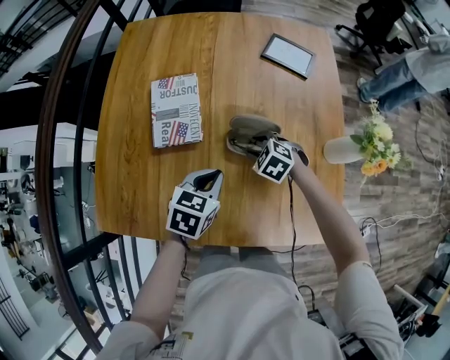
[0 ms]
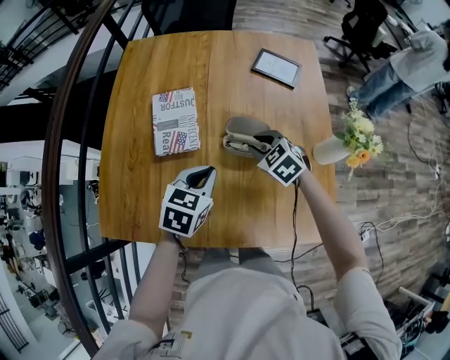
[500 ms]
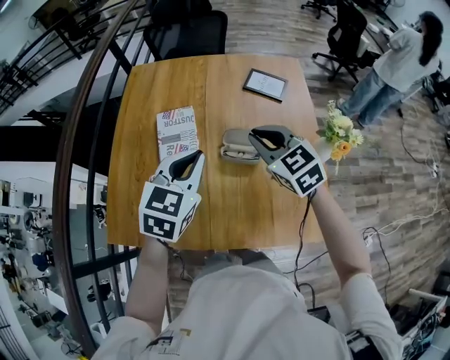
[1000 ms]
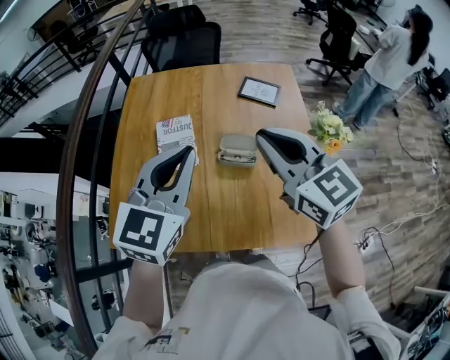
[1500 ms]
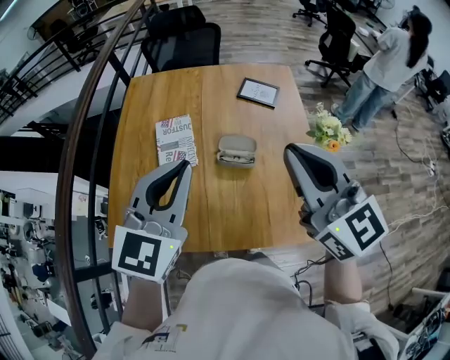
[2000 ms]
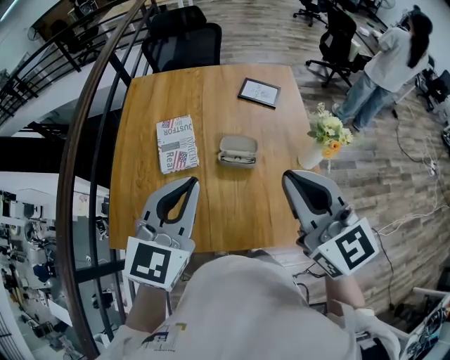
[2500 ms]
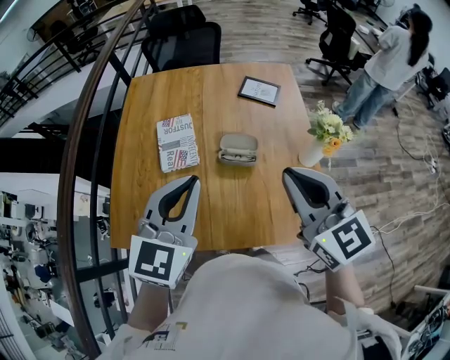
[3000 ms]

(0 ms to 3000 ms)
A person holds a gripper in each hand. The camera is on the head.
0 ms - 1500 ms: The two grippers go roughly 40 cm upward. The left gripper angles its fingers upward, by about 30 degrees. The right gripper points its fingers some 60 degrees further upward, and closes its fingers.
1500 ms - 3000 ms: The two grippers go roughly 5 cm backward.

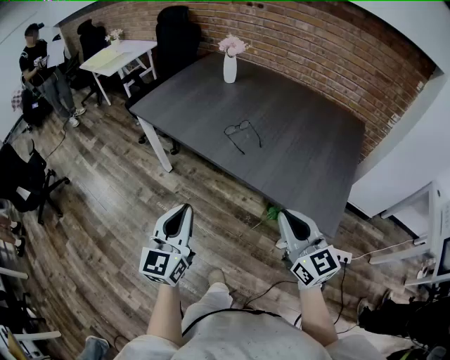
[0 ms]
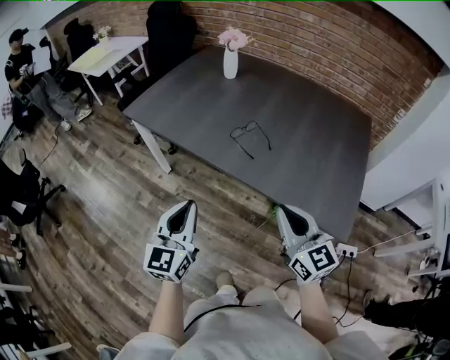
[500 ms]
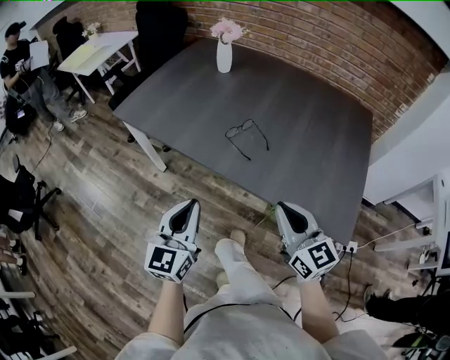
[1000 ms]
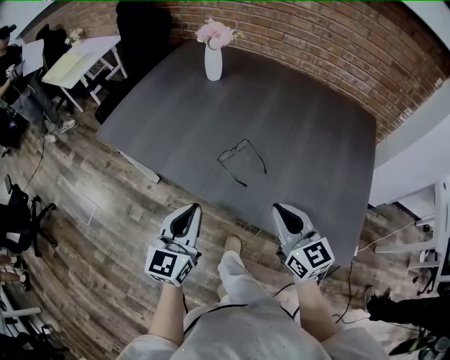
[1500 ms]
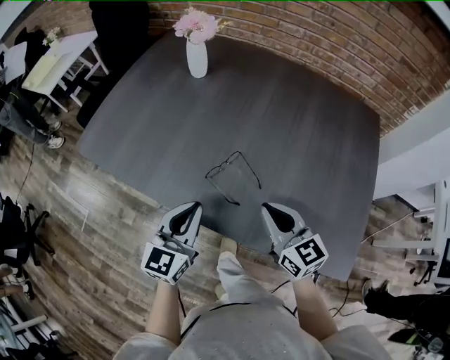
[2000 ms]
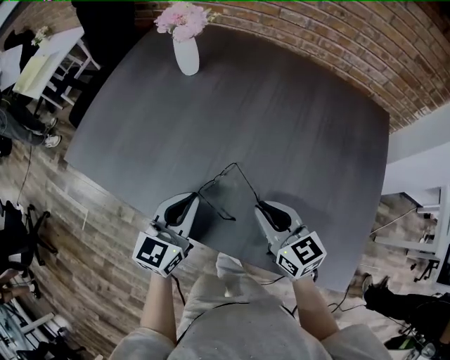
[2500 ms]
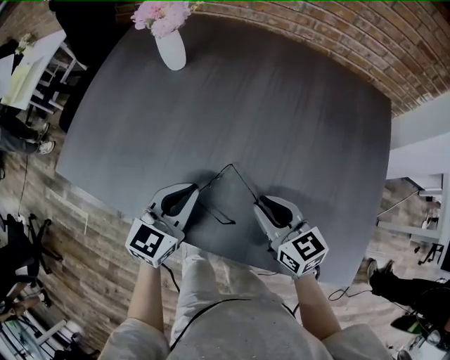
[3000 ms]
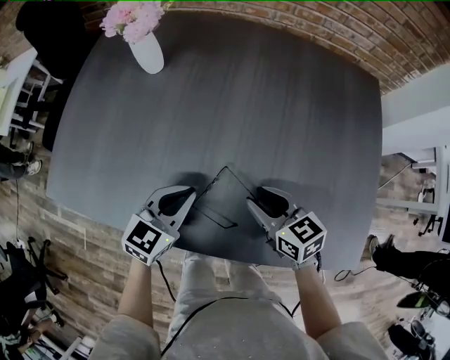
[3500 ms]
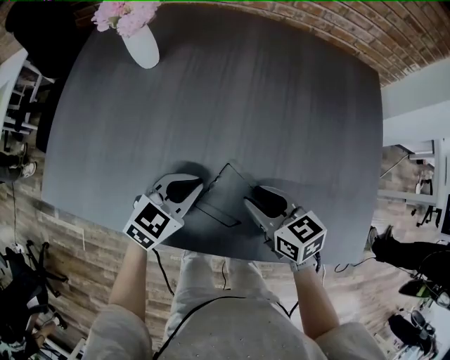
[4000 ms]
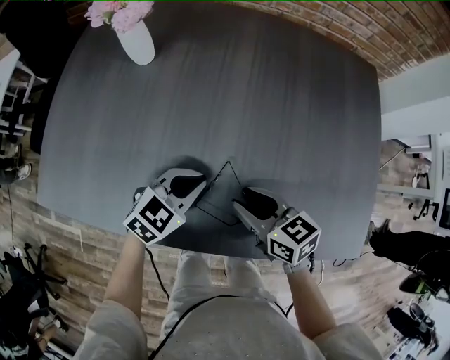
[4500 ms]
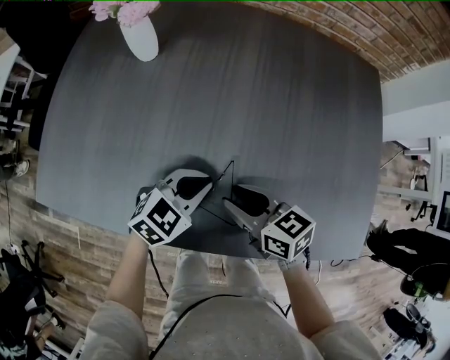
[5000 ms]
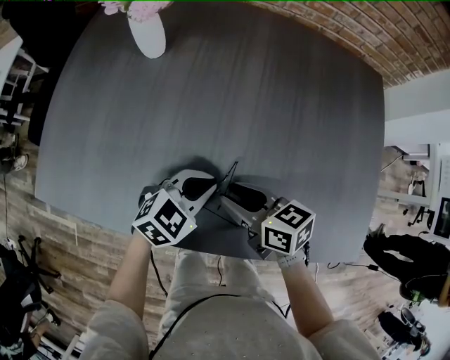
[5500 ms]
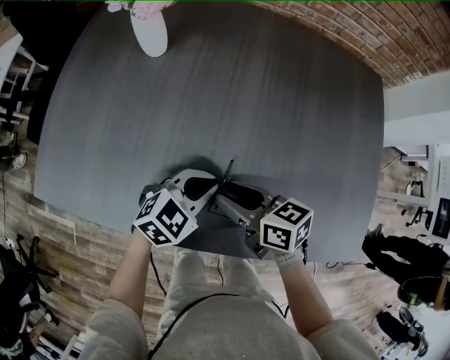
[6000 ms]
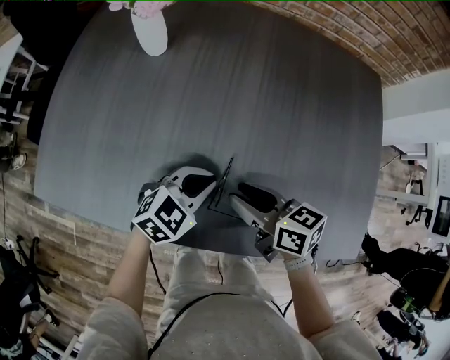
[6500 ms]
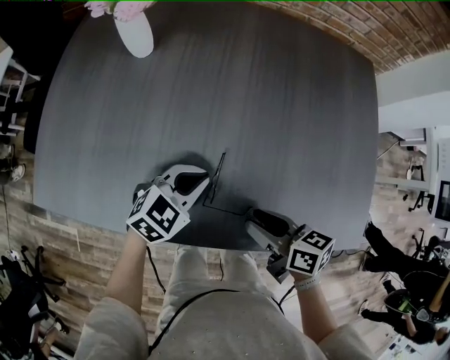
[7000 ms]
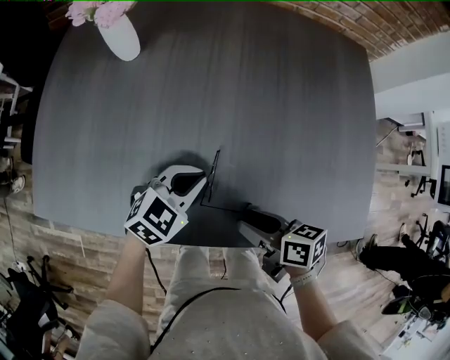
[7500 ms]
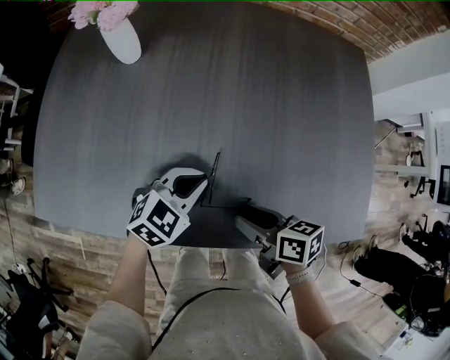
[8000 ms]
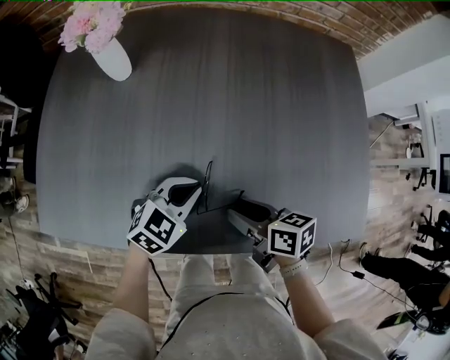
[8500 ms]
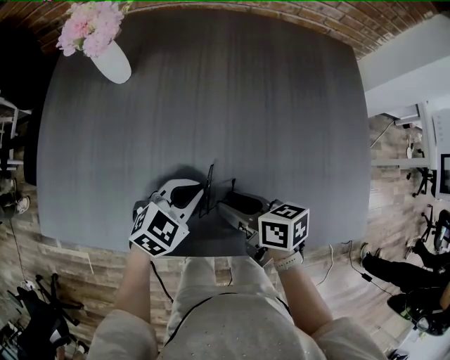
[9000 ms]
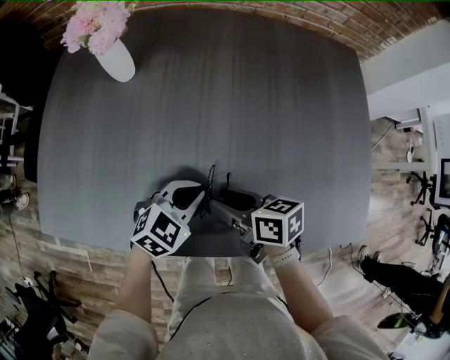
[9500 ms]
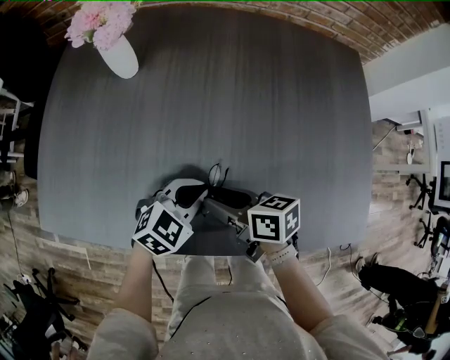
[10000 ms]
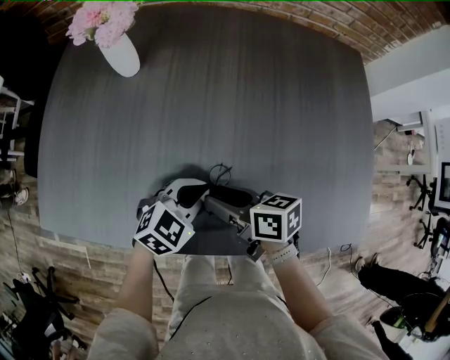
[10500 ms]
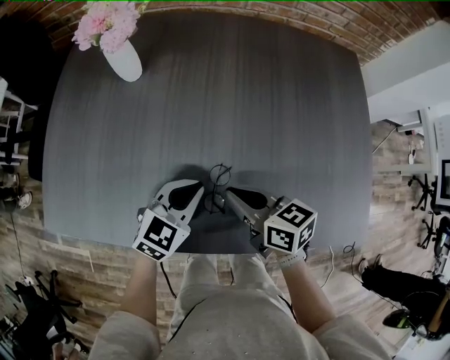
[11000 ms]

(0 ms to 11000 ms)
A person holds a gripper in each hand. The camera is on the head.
0 ms - 2000 ms: Both grippers travel together forward, about 35 cm. The left gripper rotates some 20 degrees.
2000 ms - 3500 ms: Both grippers travel together forward and downward, roughly 15 cm. The left gripper turns by some 30 degrees; the right gripper rotates roughly 20 degrees, and opens its fingers.
3500 ms - 5500 ms: The left gripper shifts by approximately 5 cm, and rotates roughly 30 degrees. The right gripper moves to the left, roughly 10 cm.
5500 ms - 7500 ms: The right gripper heads backward and to the right, covering about 10 cm, and swivels approximately 20 degrees.
7500 ms - 9000 ms: The right gripper heads forward, covering about 5 cm.
9000 ms - 11000 ms: The right gripper closes its fingers.

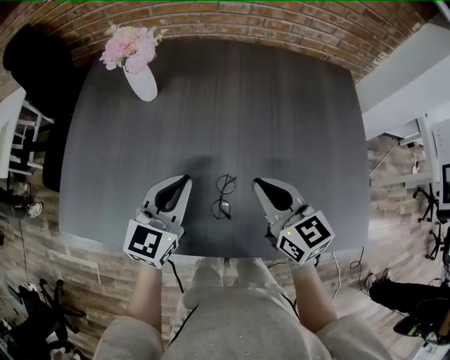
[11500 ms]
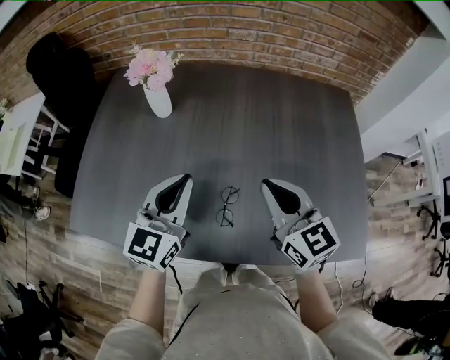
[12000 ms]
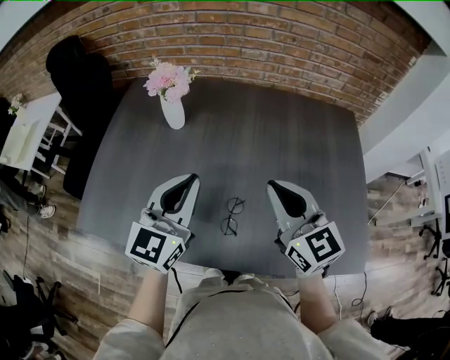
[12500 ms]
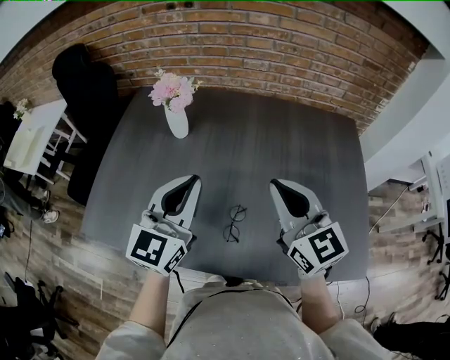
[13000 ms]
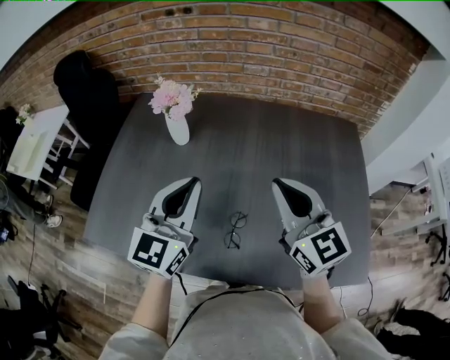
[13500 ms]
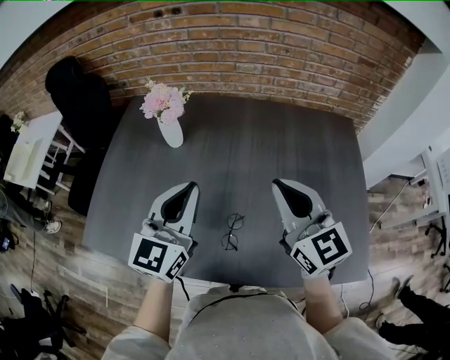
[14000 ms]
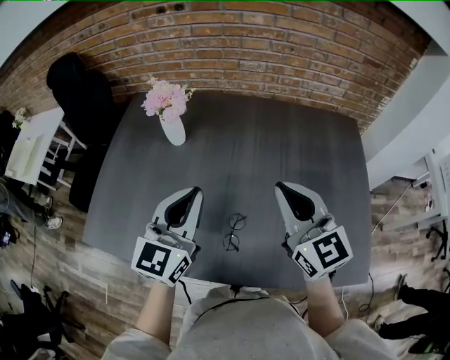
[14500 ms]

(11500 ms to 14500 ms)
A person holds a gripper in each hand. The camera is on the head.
11500 ms - 13000 ms: Both grippers move upward, about 15 cm. The right gripper rotates about 20 degrees.
13000 ms - 14500 ms: The grippers move only a little.

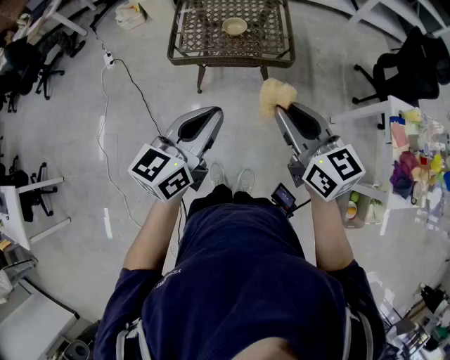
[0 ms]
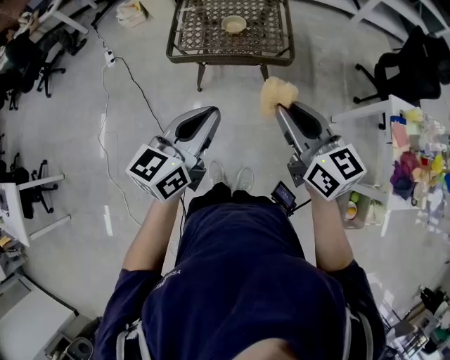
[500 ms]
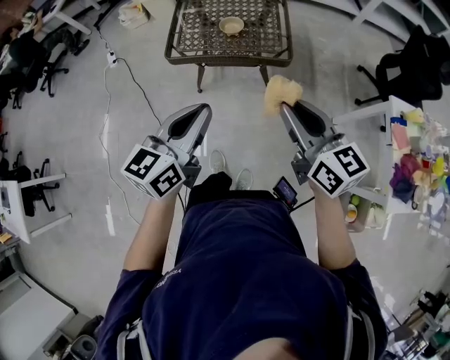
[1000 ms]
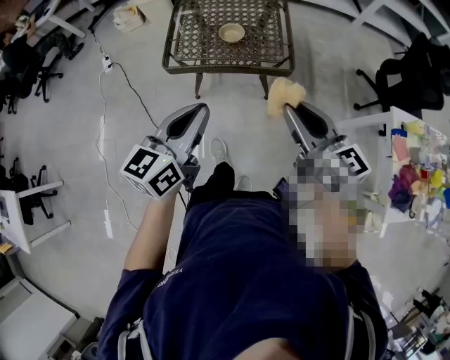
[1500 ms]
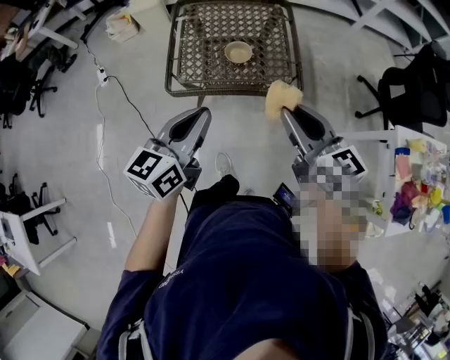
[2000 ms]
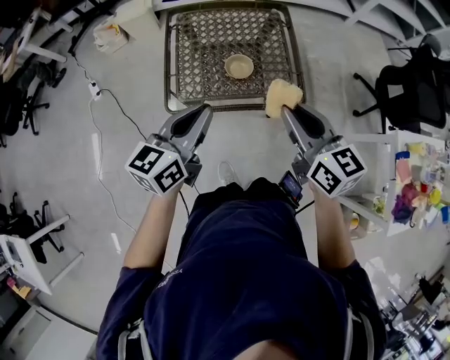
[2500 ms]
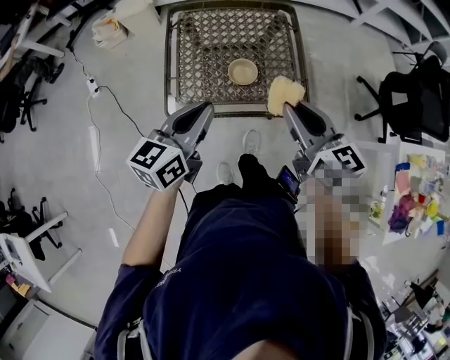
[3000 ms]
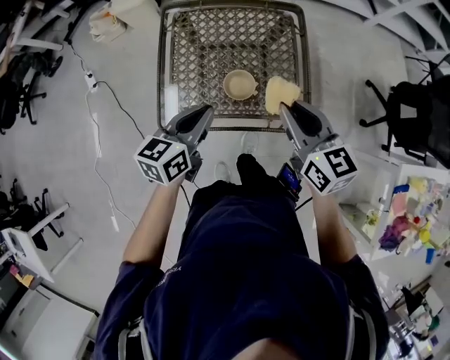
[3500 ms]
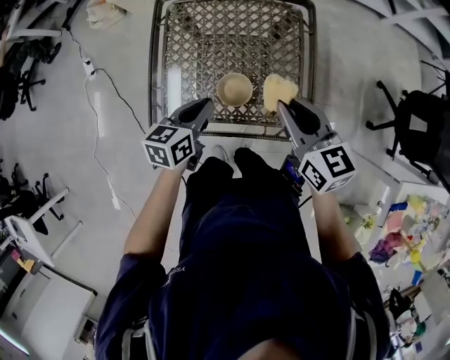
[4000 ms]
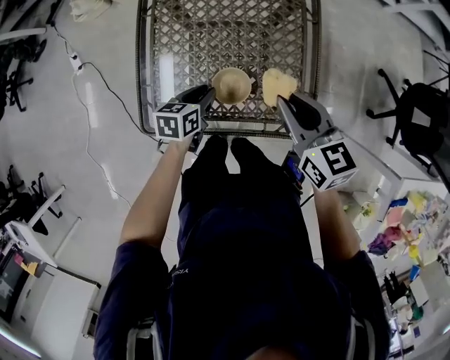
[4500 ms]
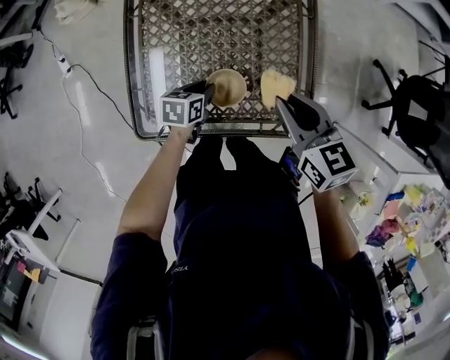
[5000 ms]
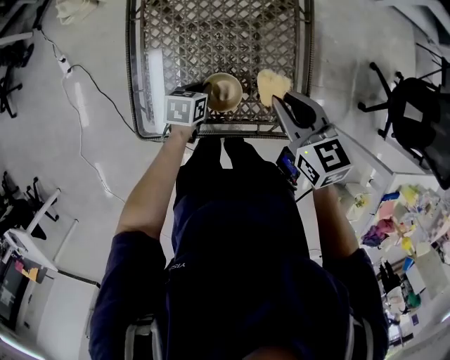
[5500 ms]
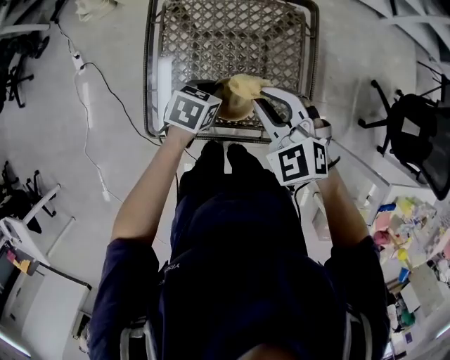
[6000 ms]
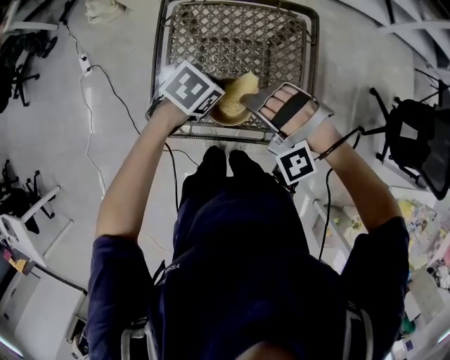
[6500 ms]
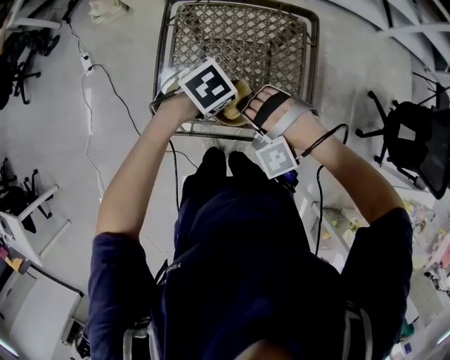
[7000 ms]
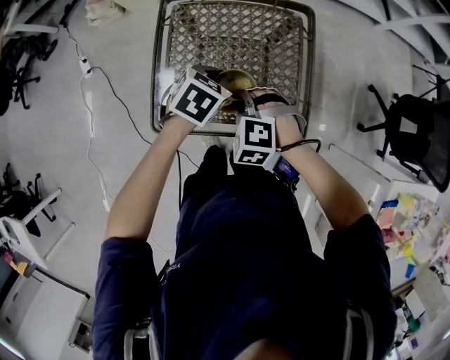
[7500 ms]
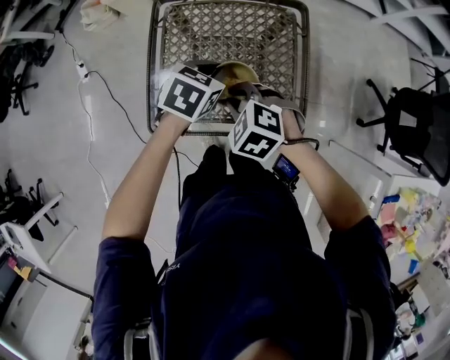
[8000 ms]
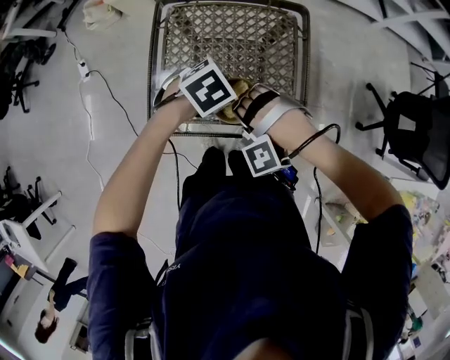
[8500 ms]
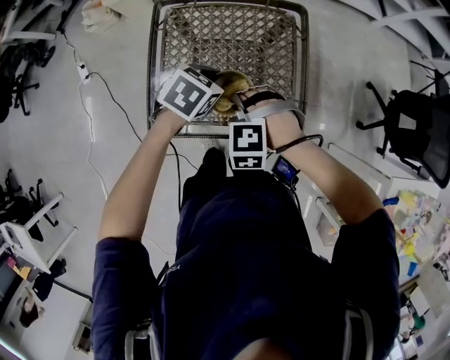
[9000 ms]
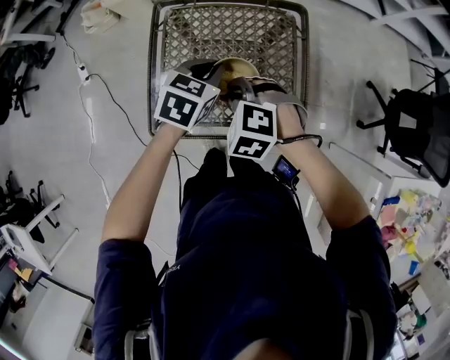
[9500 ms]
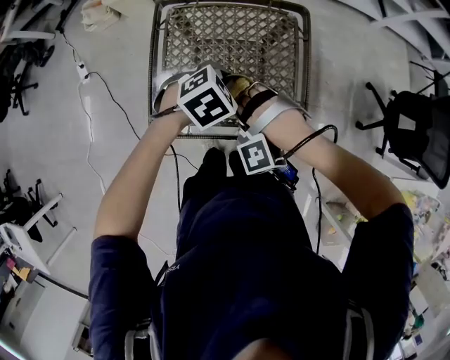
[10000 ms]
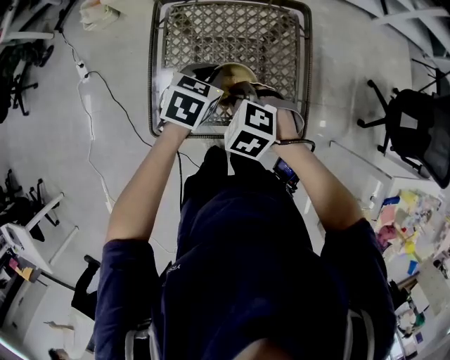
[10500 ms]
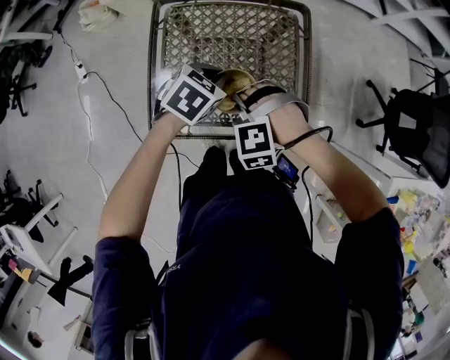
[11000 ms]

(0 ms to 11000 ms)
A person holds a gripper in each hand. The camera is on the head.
0 ms - 2000 ms: Both grippers travel together forward, about 20 cm.
2000 ms - 3500 ms: Both grippers move forward and downward, some 15 cm.
3500 ms - 5500 ms: The right gripper moves forward and downward, roughly 15 cm; the left gripper heads downward and forward, covering about 30 cm, and angles its fingers downward, by approximately 30 degrees.
5500 ms - 7500 ms: The left gripper heads upward, covering roughly 20 cm, and turns by about 30 degrees; the right gripper shifts some 15 cm to the left and backward, and twists some 70 degrees counterclockwise, seen from behind.
